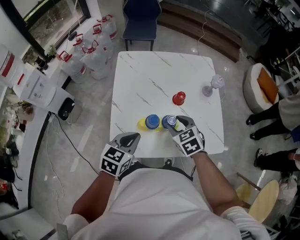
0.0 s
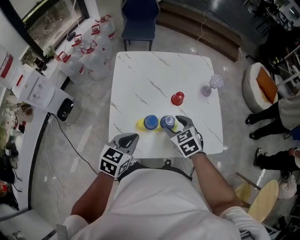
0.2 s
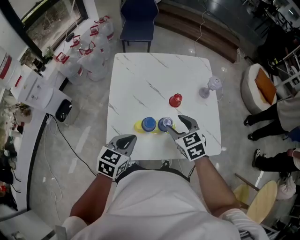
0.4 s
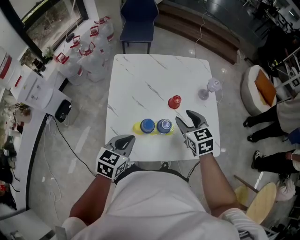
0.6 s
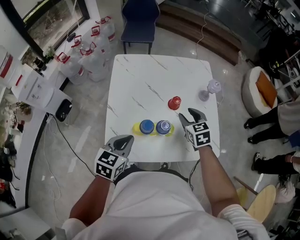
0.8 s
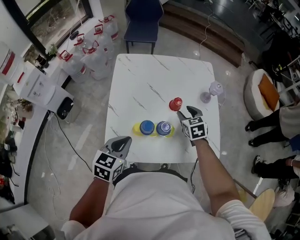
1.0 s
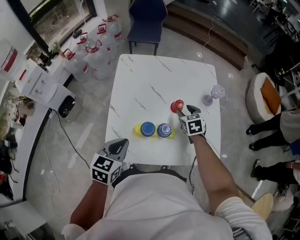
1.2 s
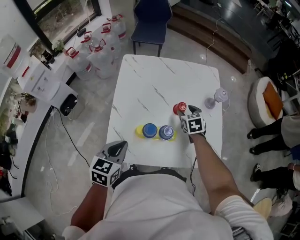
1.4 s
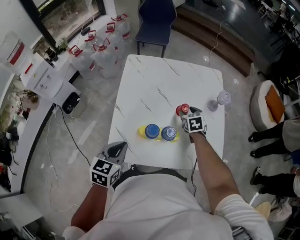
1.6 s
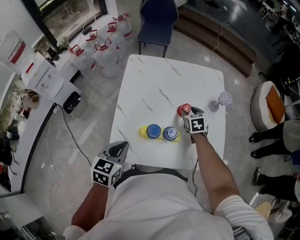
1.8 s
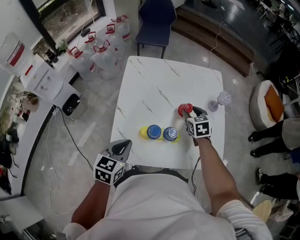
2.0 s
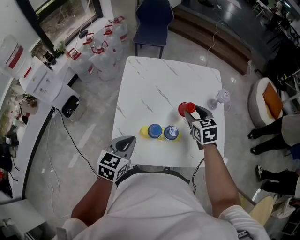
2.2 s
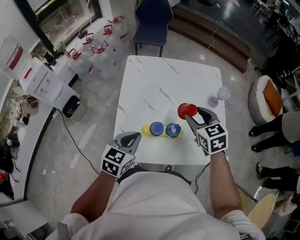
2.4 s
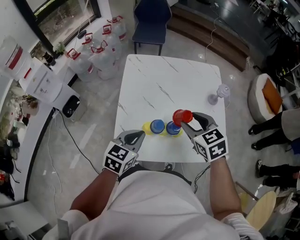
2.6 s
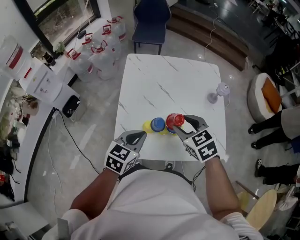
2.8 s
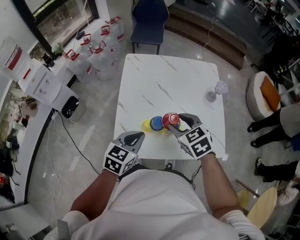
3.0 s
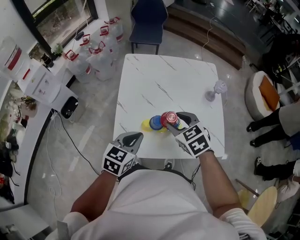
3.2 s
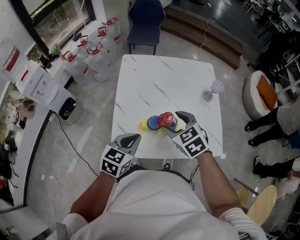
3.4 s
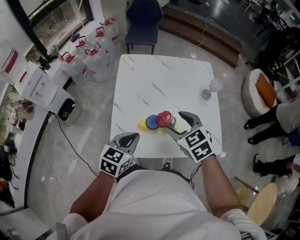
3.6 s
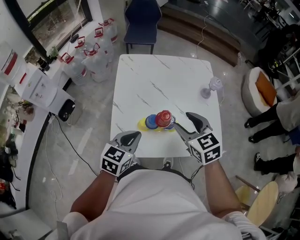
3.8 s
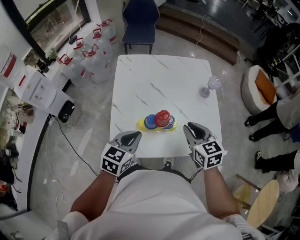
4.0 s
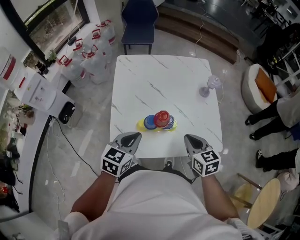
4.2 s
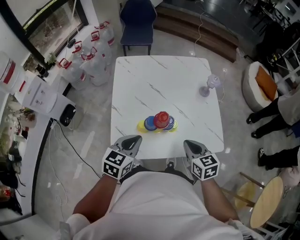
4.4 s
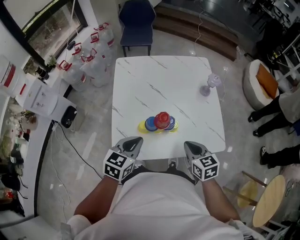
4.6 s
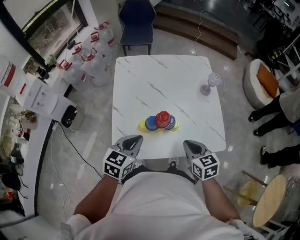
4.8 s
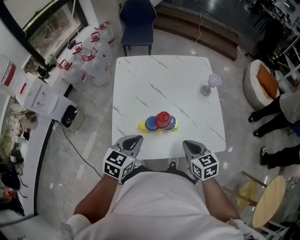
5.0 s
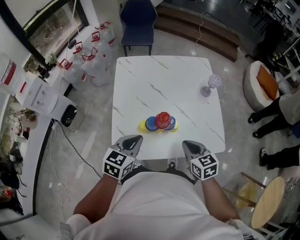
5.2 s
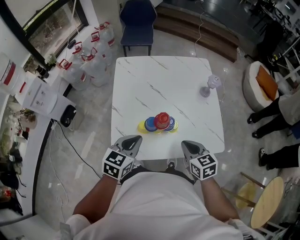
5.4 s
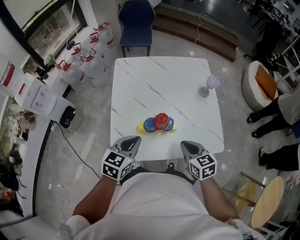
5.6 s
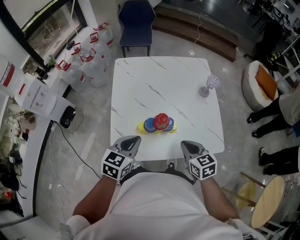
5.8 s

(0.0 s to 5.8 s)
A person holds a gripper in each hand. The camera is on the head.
0.0 s - 1.4 s: The right gripper shifts approximately 20 cm forward, downward and to the right.
1.4 s - 2.8 s: The right gripper moves upward, backward and to the left, about 25 cm.
2.8 s - 4.4 s: The right gripper travels backward, to the right and downward by about 15 cm, changes its angle by about 30 degrees, and closes its fingers.
4.4 s - 5.8 s: There are only small adjustments of the grippers.

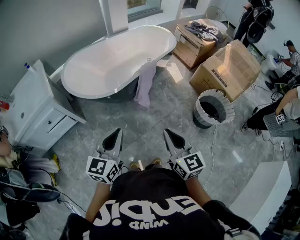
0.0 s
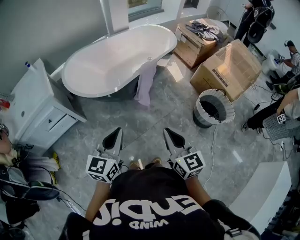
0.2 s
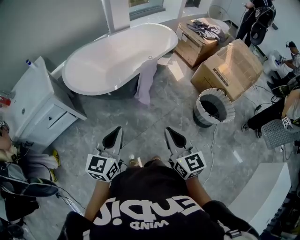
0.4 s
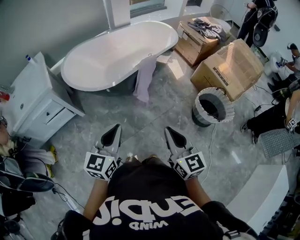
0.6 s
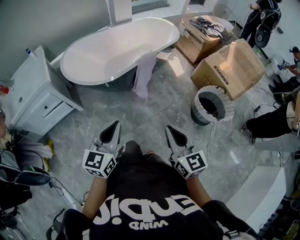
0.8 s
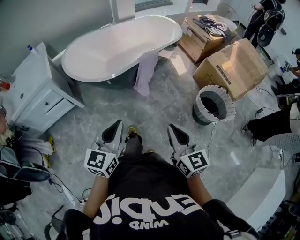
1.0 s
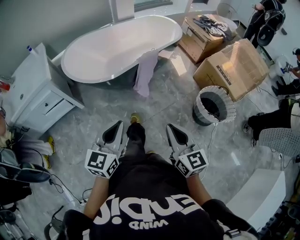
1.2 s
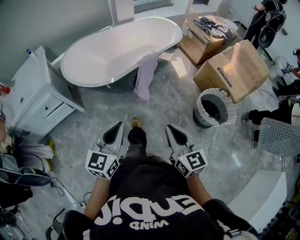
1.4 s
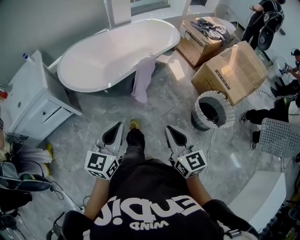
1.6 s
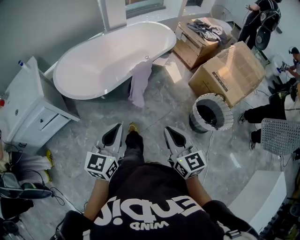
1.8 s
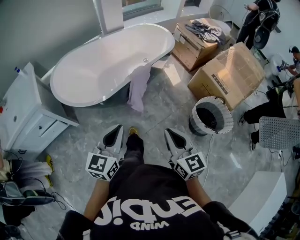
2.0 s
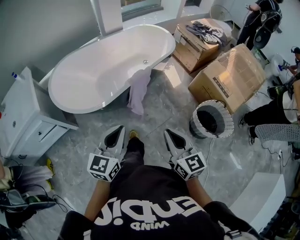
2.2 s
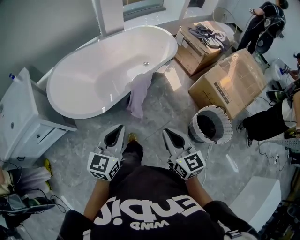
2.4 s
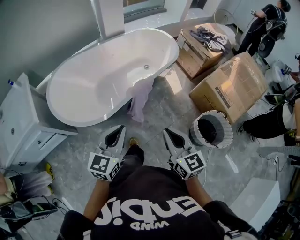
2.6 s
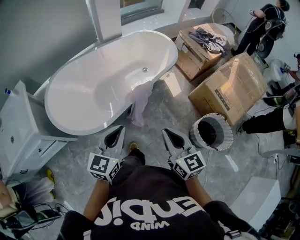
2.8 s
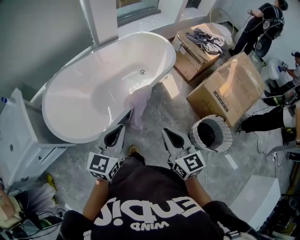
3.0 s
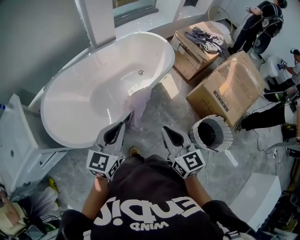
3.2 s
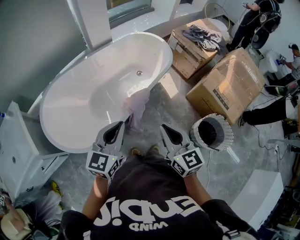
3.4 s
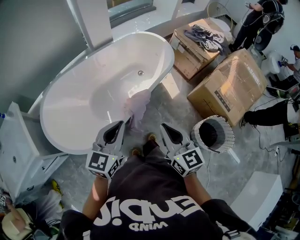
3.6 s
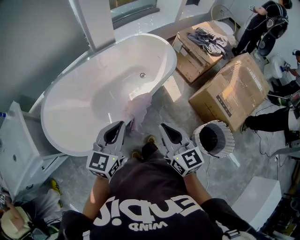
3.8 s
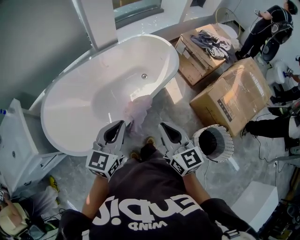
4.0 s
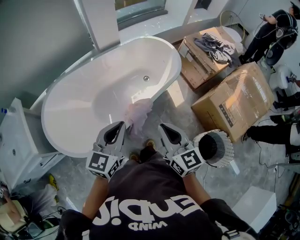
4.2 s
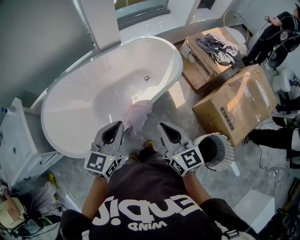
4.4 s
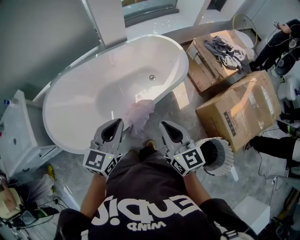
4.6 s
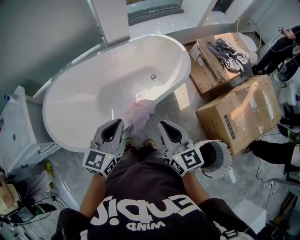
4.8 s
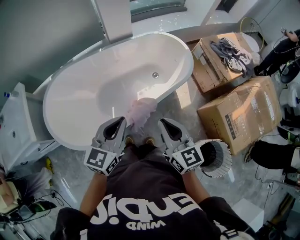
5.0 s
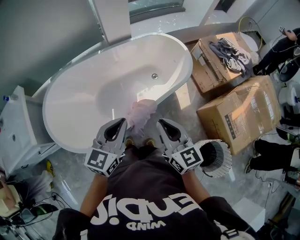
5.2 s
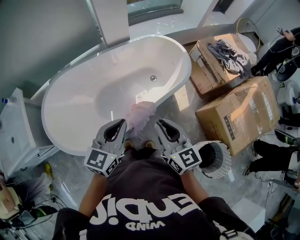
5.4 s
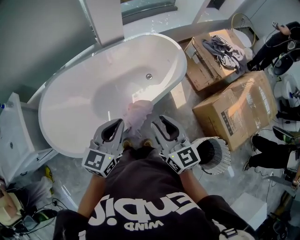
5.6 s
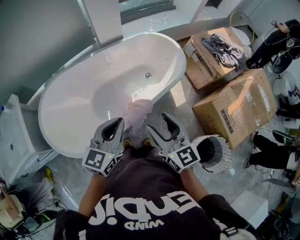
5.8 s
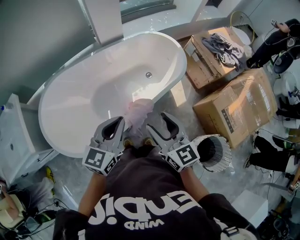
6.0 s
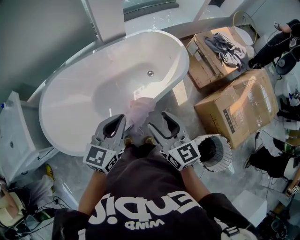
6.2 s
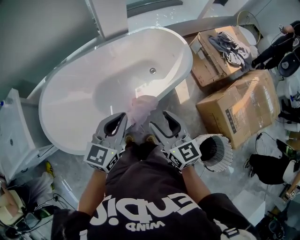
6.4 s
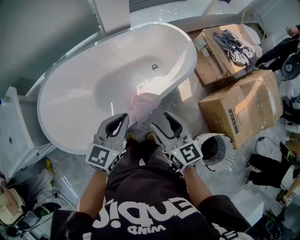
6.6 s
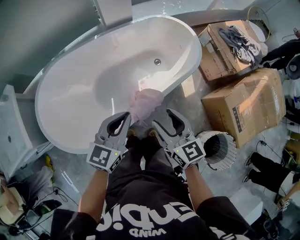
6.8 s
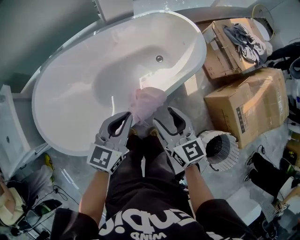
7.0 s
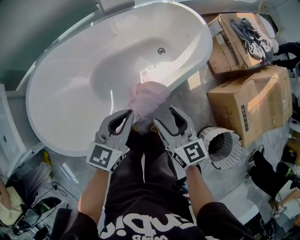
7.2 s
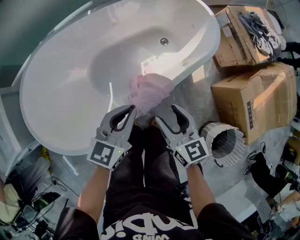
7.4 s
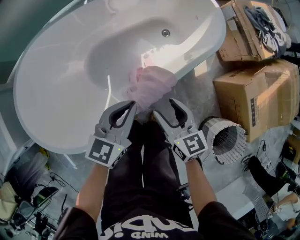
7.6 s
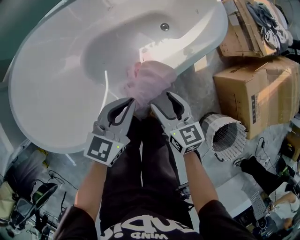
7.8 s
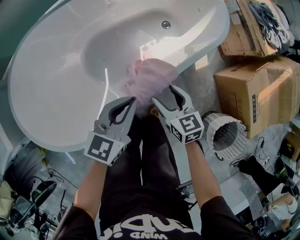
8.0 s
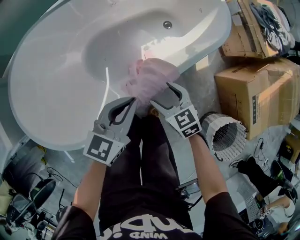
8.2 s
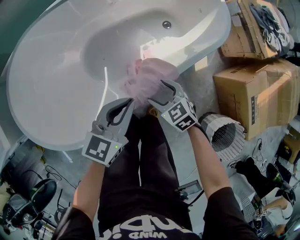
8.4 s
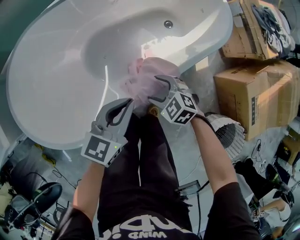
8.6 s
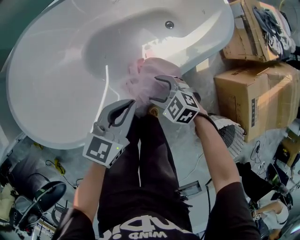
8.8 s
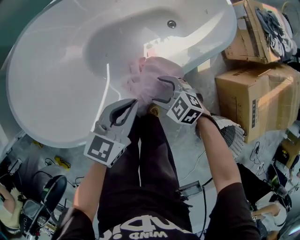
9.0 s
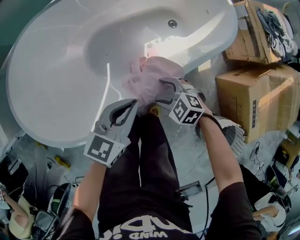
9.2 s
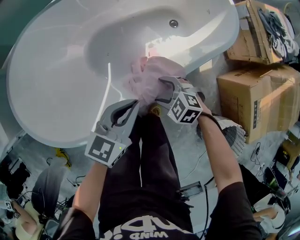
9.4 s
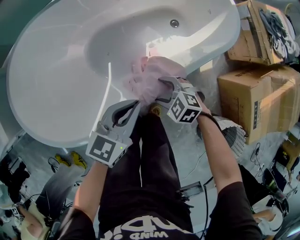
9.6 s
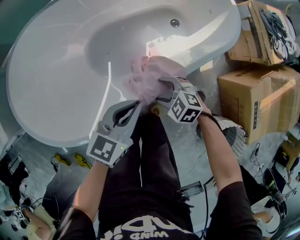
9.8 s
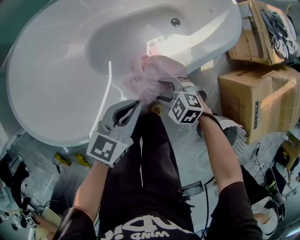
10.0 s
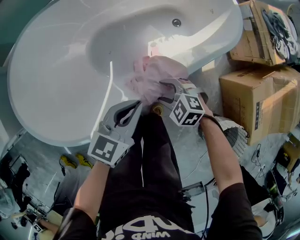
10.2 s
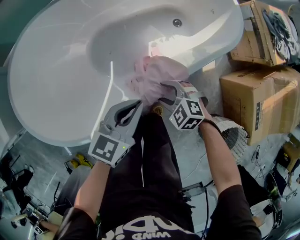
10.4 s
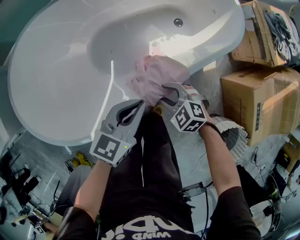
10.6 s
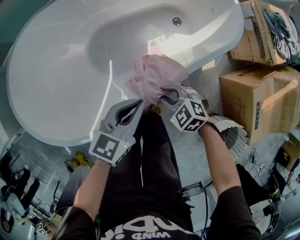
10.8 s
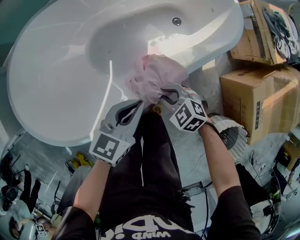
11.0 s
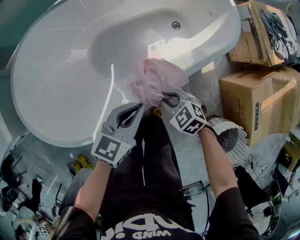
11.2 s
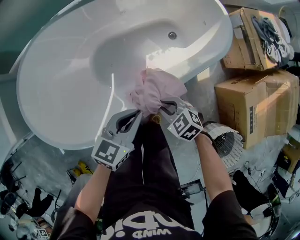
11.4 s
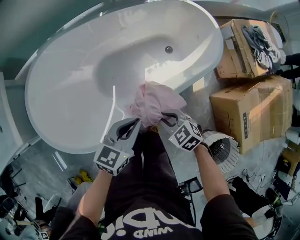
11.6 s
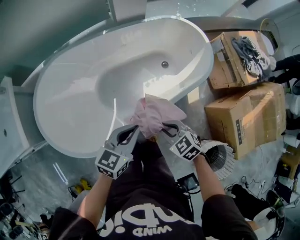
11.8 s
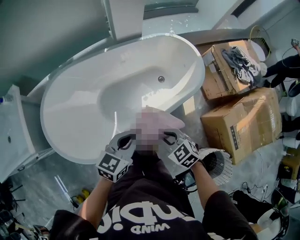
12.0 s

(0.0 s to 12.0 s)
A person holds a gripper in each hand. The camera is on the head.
0.0 s - 1.6 s: Both grippers travel together to the right, about 5 cm.
1.6 s - 3.0 s: The grippers both shift forward by approximately 30 cm.
3.0 s - 4.4 s: Both grippers travel together forward, about 15 cm.
4.4 s - 6.0 s: The right gripper ends up some 5 cm from where it was, and opens up.
6.0 s - 7.6 s: The grippers both shift downward by some 25 cm.
7.6 s - 9.0 s: The right gripper is displaced downward by approximately 15 cm, and turns by approximately 60 degrees.
9.0 s - 10.4 s: There are only small adjustments of the grippers.
10.4 s - 12.0 s: The grippers both shift upward by roughly 20 cm. The right gripper changes its angle by approximately 30 degrees, and closes.

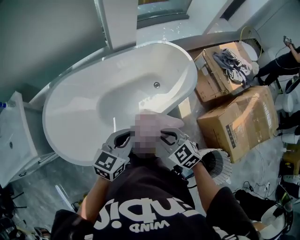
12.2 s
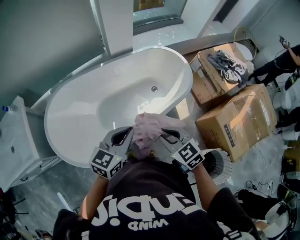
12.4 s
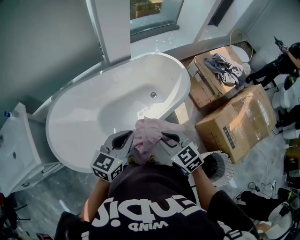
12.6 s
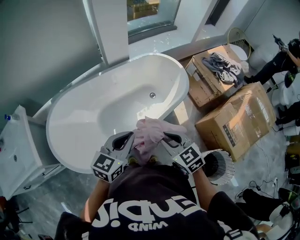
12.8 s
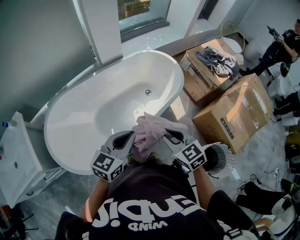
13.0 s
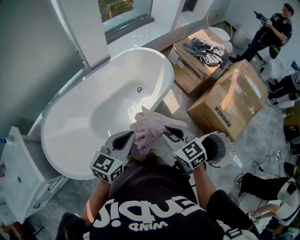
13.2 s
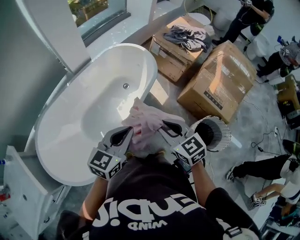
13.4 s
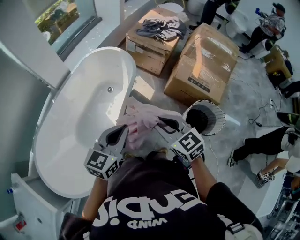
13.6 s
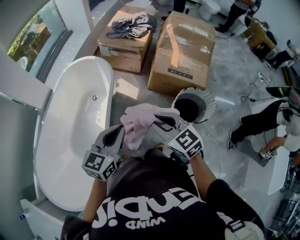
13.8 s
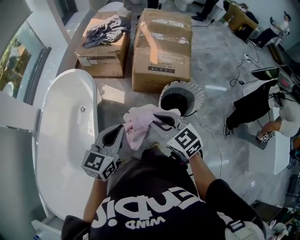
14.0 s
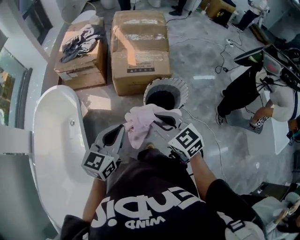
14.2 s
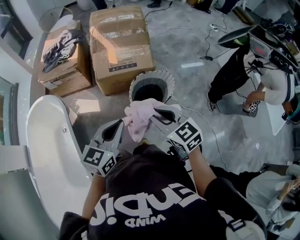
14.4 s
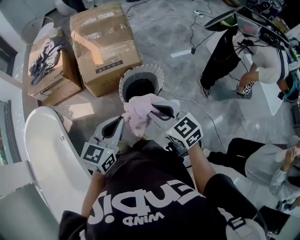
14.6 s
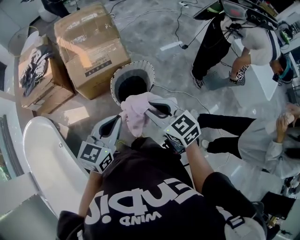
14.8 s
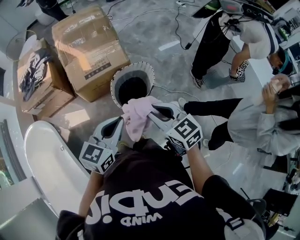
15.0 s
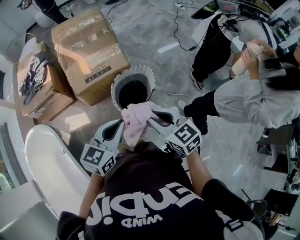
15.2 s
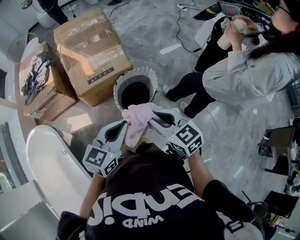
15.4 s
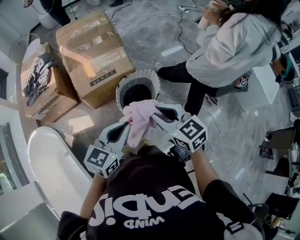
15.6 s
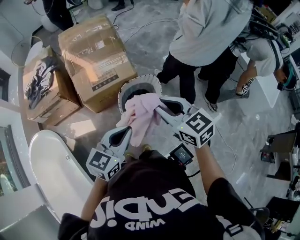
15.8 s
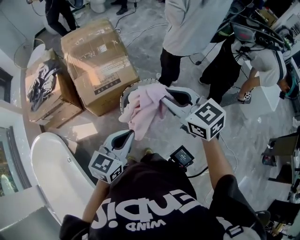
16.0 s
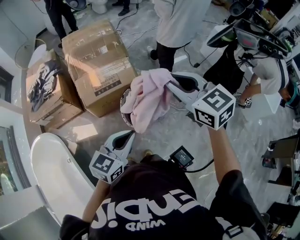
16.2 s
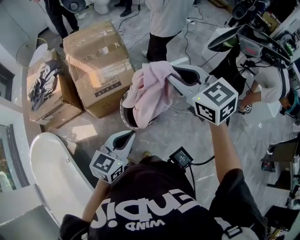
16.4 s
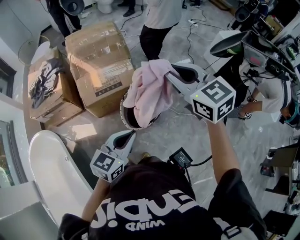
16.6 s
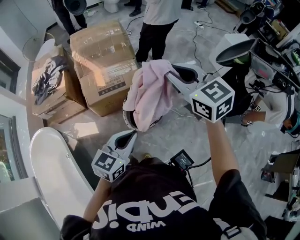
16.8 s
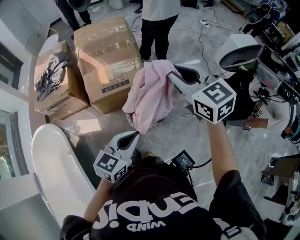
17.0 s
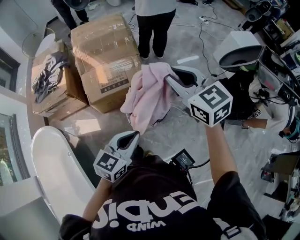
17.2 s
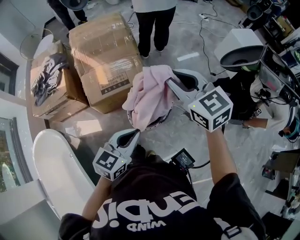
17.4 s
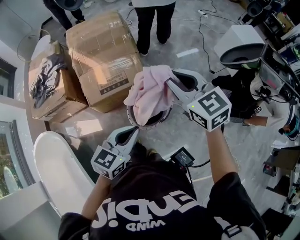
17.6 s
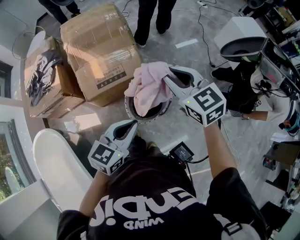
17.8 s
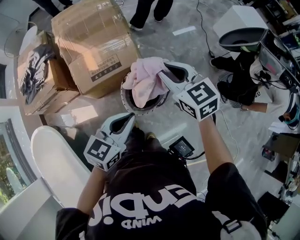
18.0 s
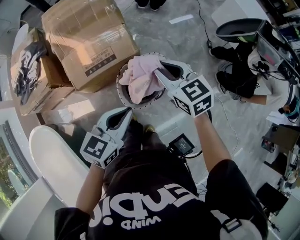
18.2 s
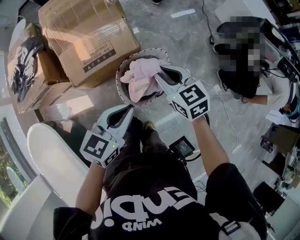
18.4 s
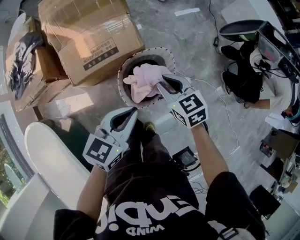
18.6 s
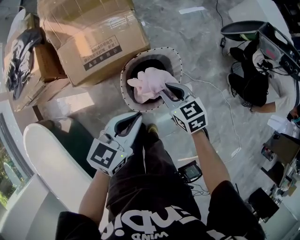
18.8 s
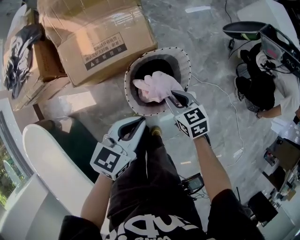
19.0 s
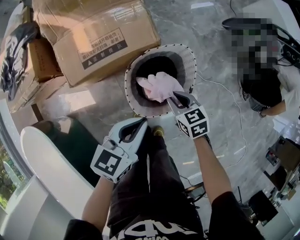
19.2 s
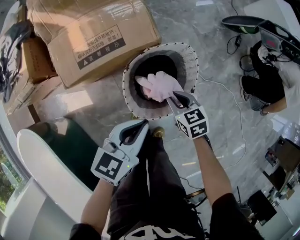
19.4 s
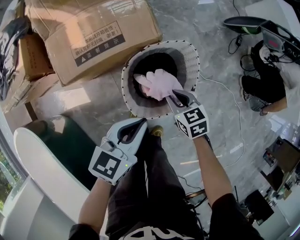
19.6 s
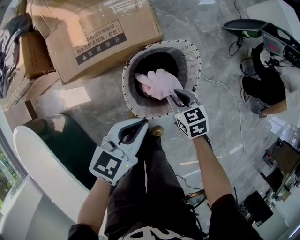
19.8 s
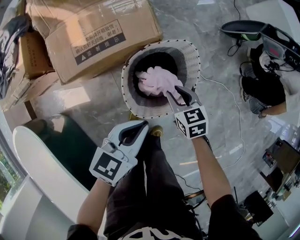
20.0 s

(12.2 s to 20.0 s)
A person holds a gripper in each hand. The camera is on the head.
12.2 s - 13.8 s: The left gripper changes place by some 20 cm, and swivels about 40 degrees. The right gripper changes place by about 25 cm, and changes its angle by some 60 degrees.
13.8 s - 15.4 s: The right gripper shifts by roughly 30 cm, and rotates approximately 50 degrees. Meanwhile the left gripper moves approximately 35 cm, and rotates some 50 degrees.
15.4 s - 16.8 s: The right gripper moves forward and upward, roughly 25 cm, while the left gripper goes approximately 5 cm forward.
16.8 s - 18.4 s: The left gripper travels forward and downward by some 15 cm, while the right gripper heads downward, covering about 25 cm, and rotates about 20 degrees.
18.4 s - 20.0 s: The left gripper heads downward, covering roughly 20 cm. Meanwhile the right gripper travels downward by approximately 30 cm.
